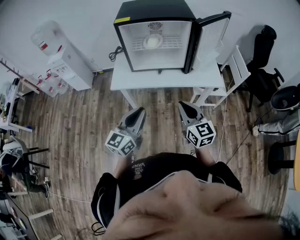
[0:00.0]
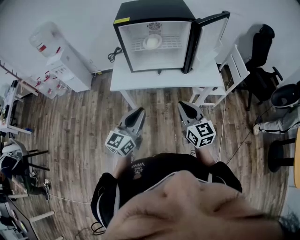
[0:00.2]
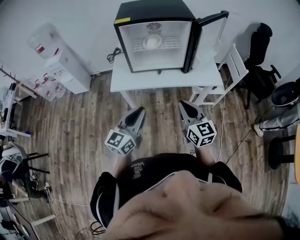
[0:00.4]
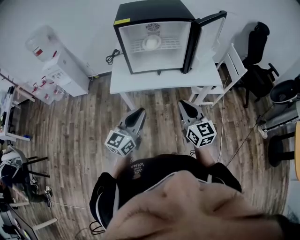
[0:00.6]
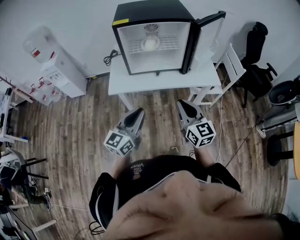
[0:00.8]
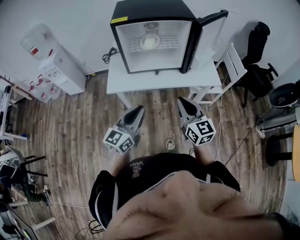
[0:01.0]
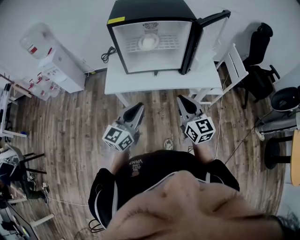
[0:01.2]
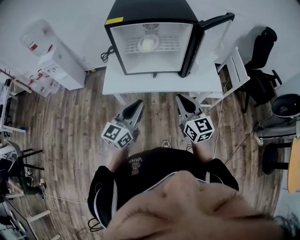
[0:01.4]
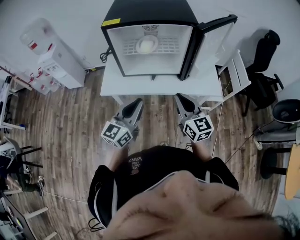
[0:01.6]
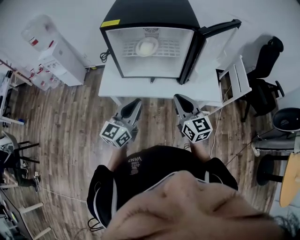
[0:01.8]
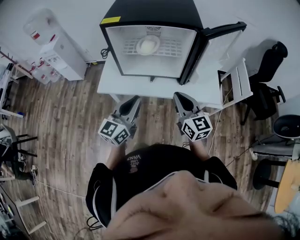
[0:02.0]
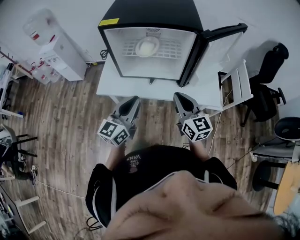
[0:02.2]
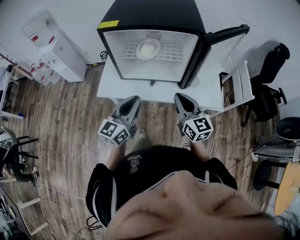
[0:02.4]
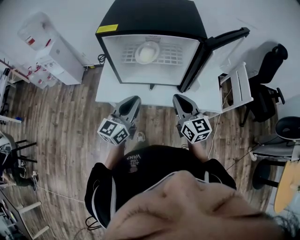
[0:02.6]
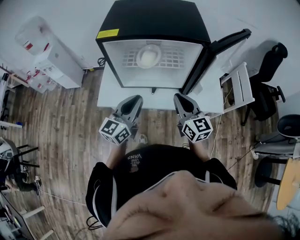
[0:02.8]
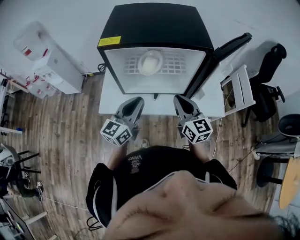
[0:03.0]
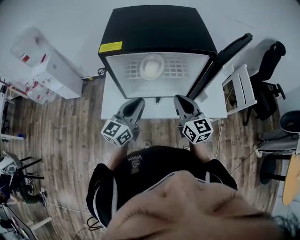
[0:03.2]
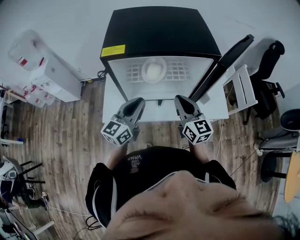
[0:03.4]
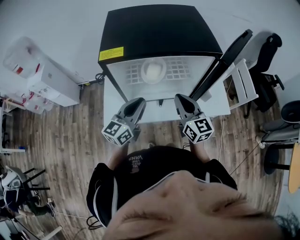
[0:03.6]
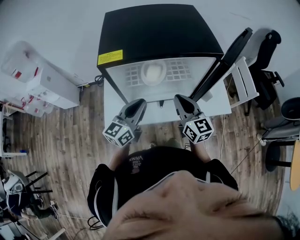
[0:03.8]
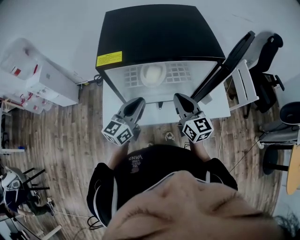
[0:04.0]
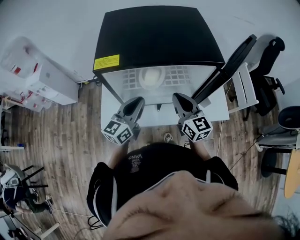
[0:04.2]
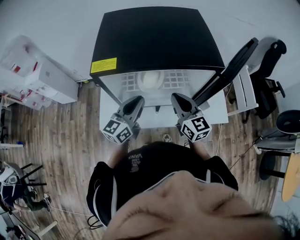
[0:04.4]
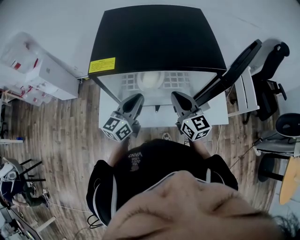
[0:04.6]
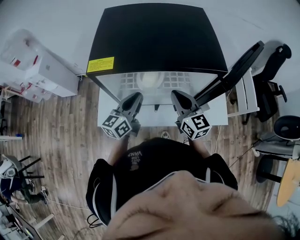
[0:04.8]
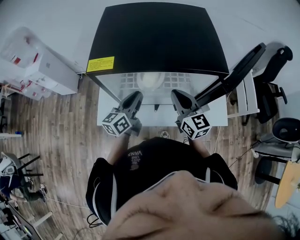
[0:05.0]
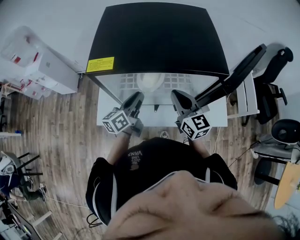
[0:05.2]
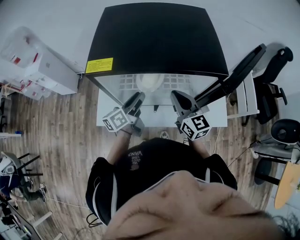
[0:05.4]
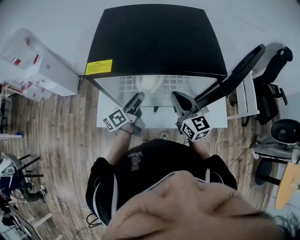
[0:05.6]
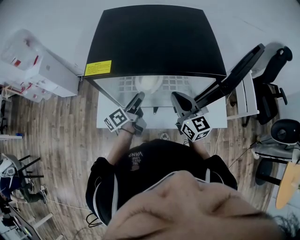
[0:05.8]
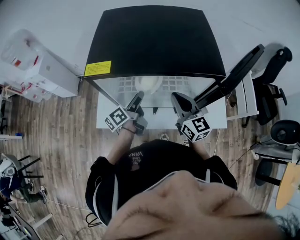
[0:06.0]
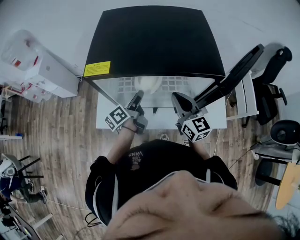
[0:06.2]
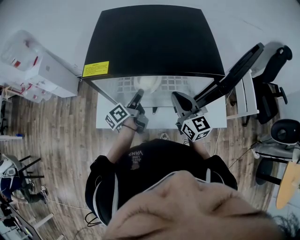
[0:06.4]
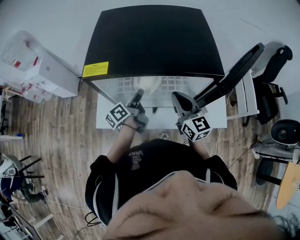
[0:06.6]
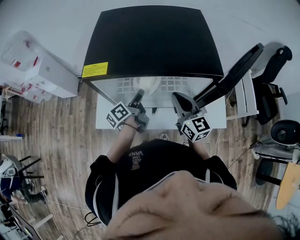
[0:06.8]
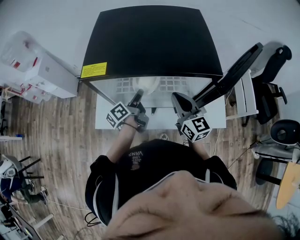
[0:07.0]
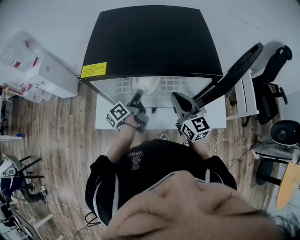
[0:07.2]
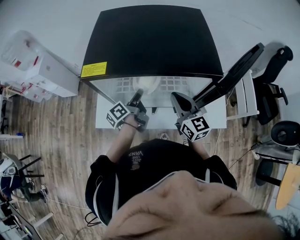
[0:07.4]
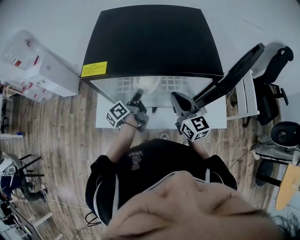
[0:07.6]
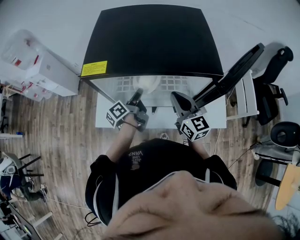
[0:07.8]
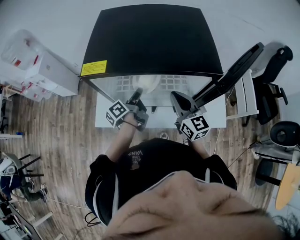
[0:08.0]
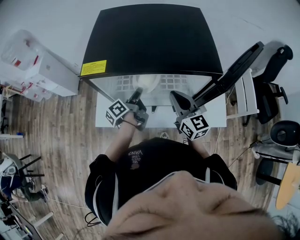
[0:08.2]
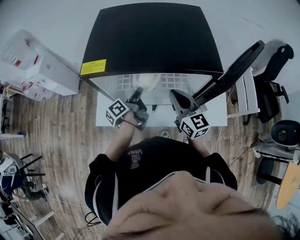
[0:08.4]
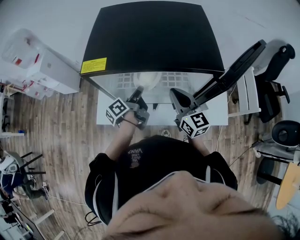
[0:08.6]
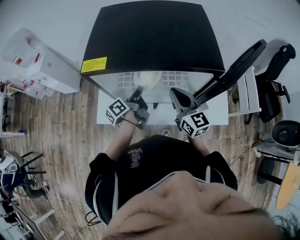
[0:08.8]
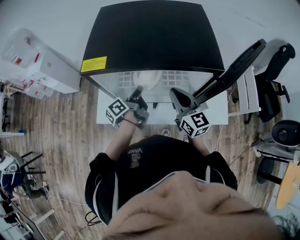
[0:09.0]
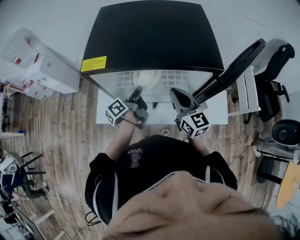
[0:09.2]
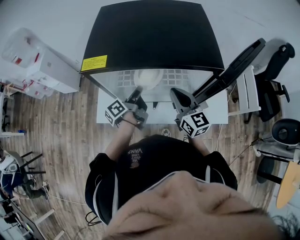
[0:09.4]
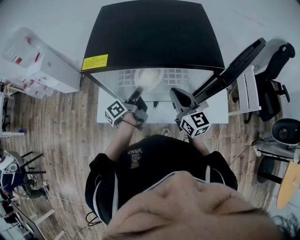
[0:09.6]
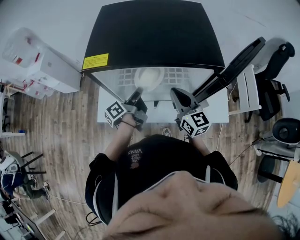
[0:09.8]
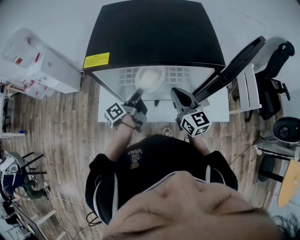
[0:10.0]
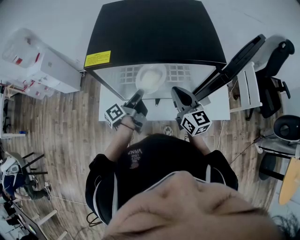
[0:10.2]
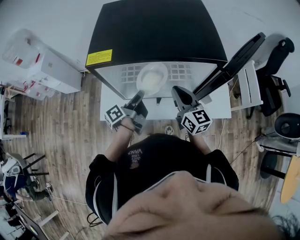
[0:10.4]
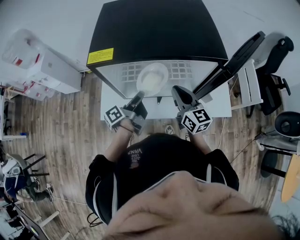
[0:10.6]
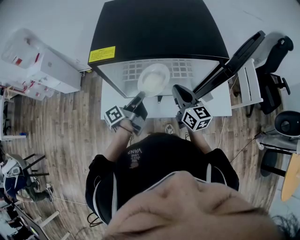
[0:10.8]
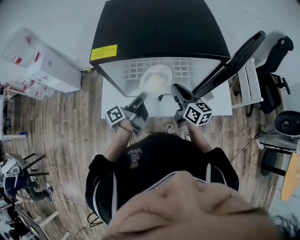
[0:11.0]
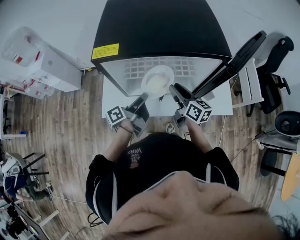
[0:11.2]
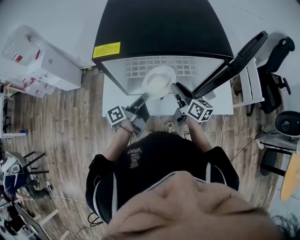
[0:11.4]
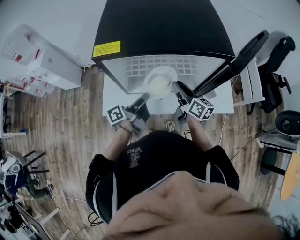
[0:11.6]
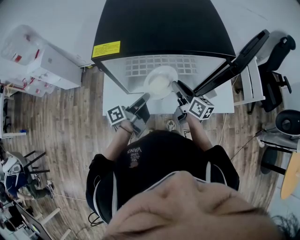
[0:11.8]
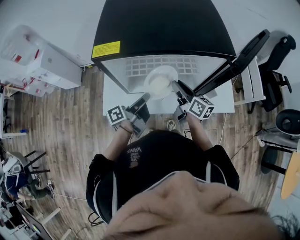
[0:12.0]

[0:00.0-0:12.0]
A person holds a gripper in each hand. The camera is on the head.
0:00.0 to 0:01.6: The grippers both shift forward by some 10 cm.
0:01.6 to 0:03.0: Both grippers travel together forward, approximately 15 cm.
0:03.0 to 0:04.4: Both grippers move forward, approximately 10 cm.
0:04.4 to 0:06.0: The left gripper travels downward and forward by some 10 cm, twists roughly 50 degrees counterclockwise, seen from behind, and opens up.
0:06.0 to 0:07.6: There are only small adjustments of the grippers.
0:07.6 to 0:09.0: The two grippers keep their place.
0:09.0 to 0:10.4: The grippers move only a little.
0:10.4 to 0:12.0: The right gripper is displaced downward by some 5 cm, changes its angle by some 30 degrees, and opens its fingers.

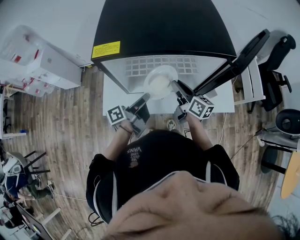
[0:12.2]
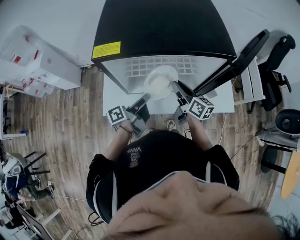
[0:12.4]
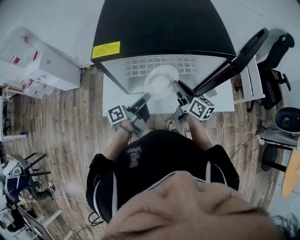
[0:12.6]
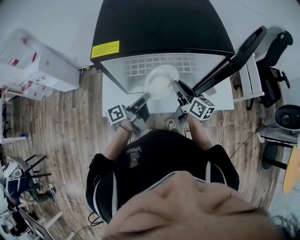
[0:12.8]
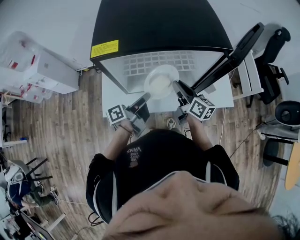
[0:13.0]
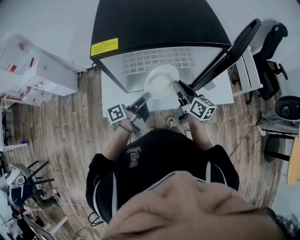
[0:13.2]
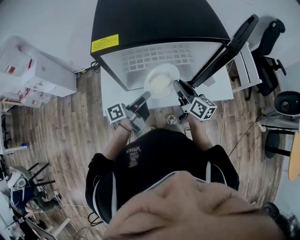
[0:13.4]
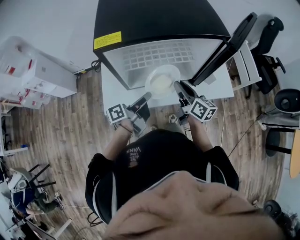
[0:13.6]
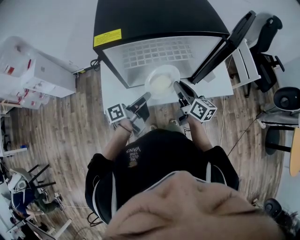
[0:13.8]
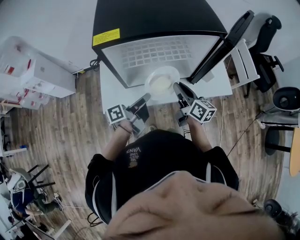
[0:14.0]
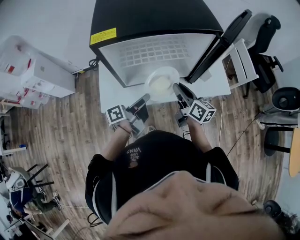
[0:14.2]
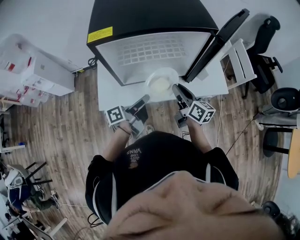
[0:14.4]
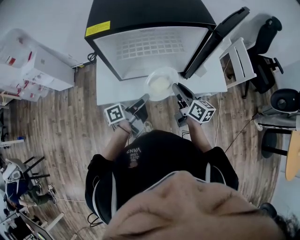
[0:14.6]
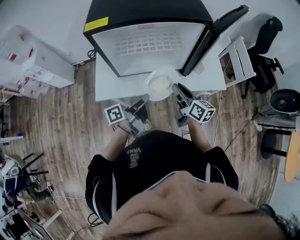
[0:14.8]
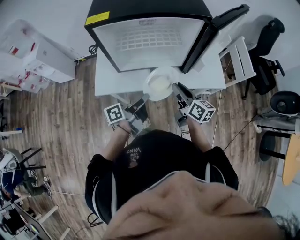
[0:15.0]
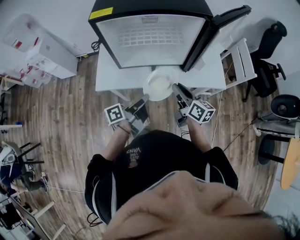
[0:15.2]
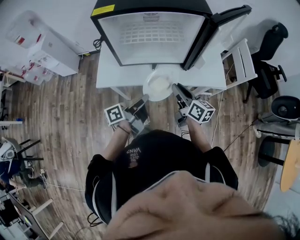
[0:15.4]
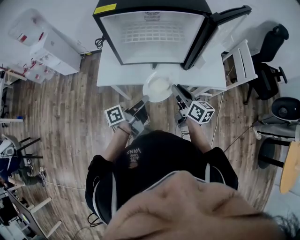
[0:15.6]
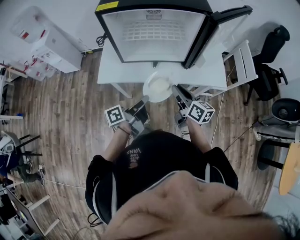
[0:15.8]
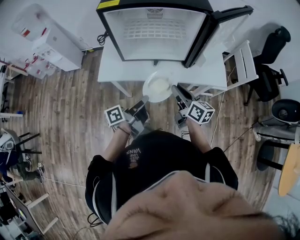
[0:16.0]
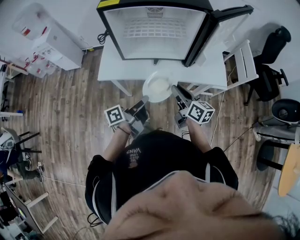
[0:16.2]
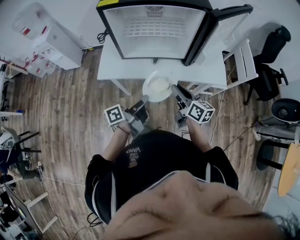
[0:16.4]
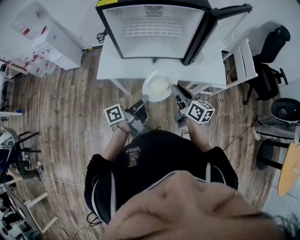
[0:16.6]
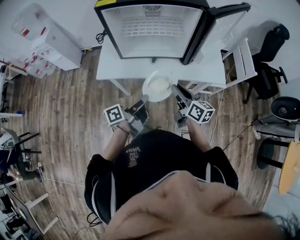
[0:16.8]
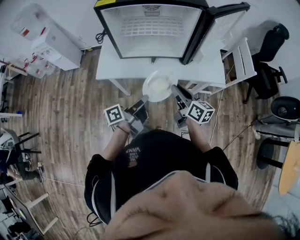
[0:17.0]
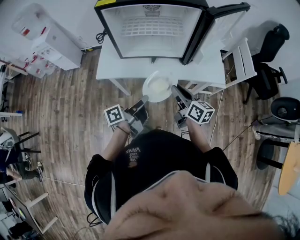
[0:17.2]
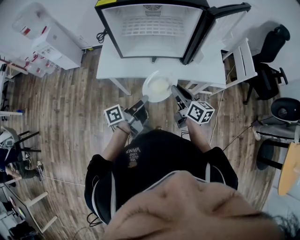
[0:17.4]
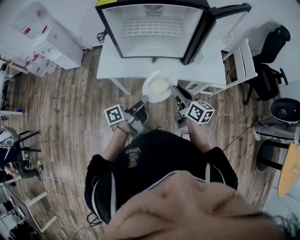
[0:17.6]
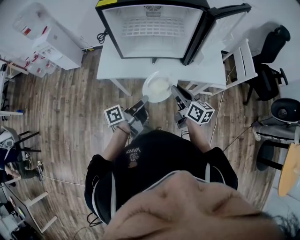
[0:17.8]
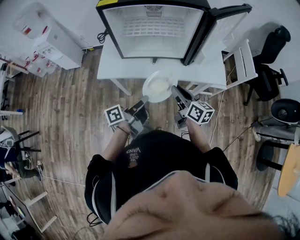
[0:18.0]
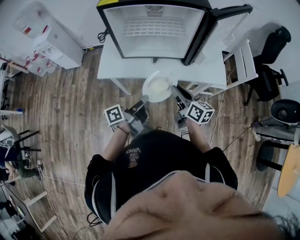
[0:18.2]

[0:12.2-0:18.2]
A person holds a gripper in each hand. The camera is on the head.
0:12.2 to 0:13.8: The right gripper shifts approximately 5 cm backward.
0:13.8 to 0:15.2: The grippers both shift backward and to the right by roughly 10 cm.
0:15.2 to 0:16.6: Both grippers travel together backward, approximately 5 cm.
0:16.6 to 0:18.2: Both grippers stay about where they are.

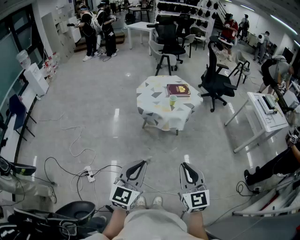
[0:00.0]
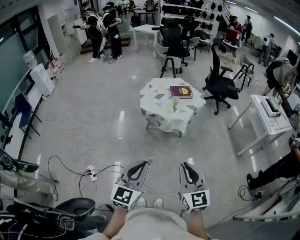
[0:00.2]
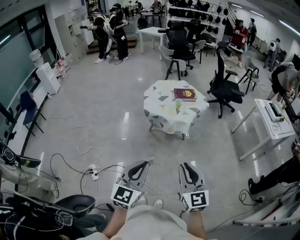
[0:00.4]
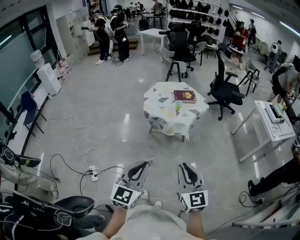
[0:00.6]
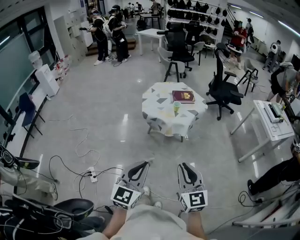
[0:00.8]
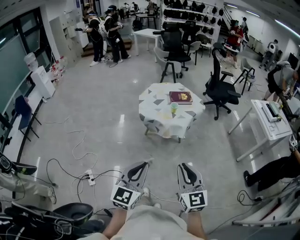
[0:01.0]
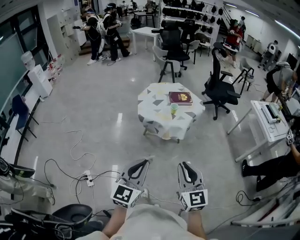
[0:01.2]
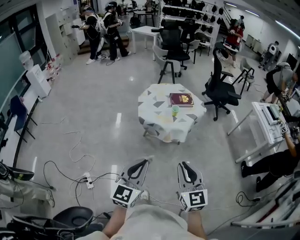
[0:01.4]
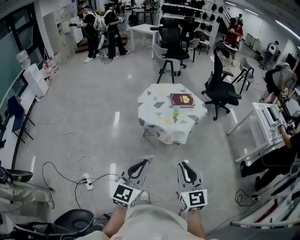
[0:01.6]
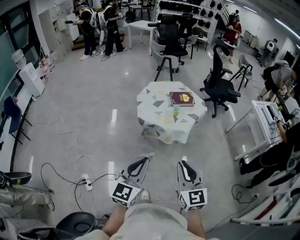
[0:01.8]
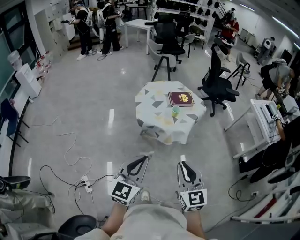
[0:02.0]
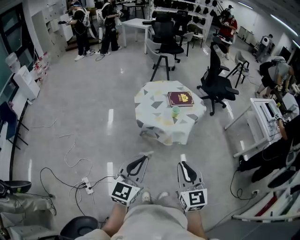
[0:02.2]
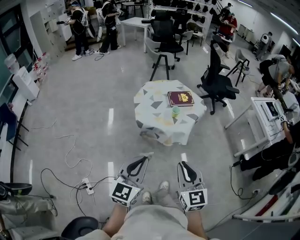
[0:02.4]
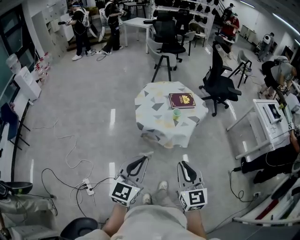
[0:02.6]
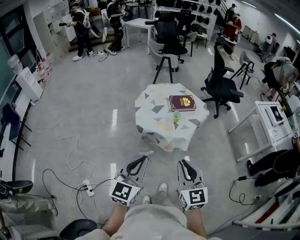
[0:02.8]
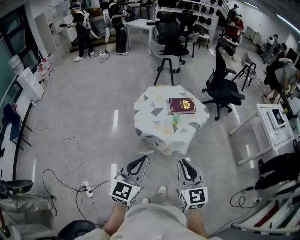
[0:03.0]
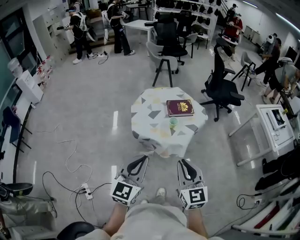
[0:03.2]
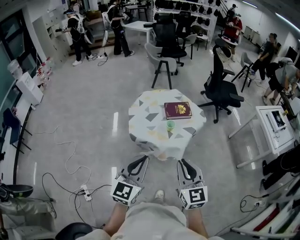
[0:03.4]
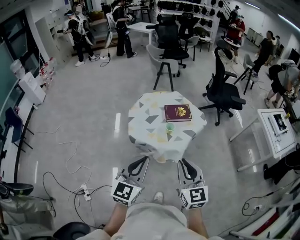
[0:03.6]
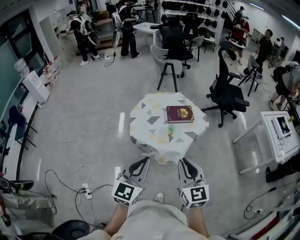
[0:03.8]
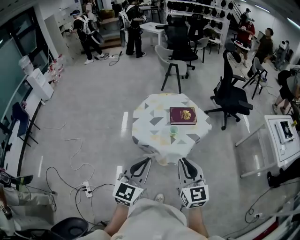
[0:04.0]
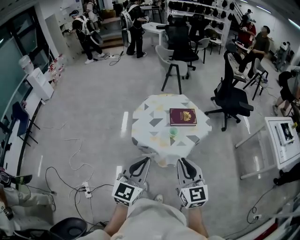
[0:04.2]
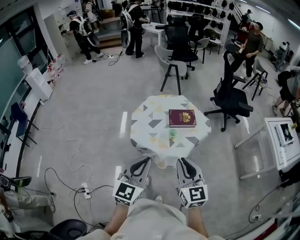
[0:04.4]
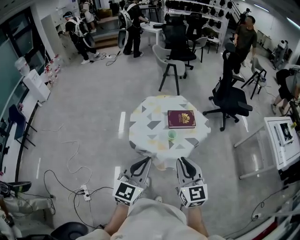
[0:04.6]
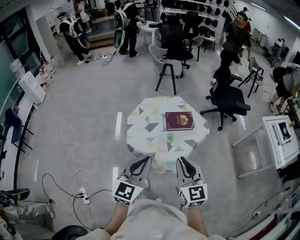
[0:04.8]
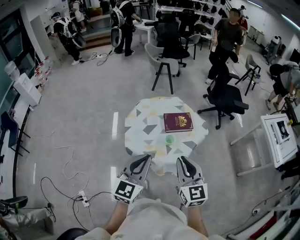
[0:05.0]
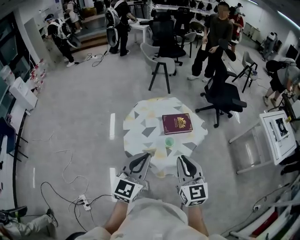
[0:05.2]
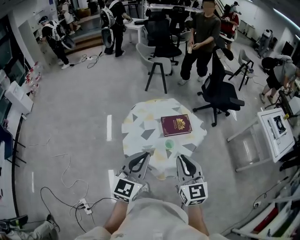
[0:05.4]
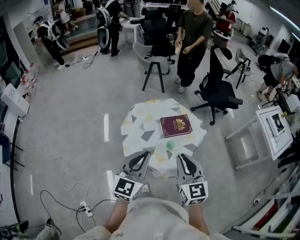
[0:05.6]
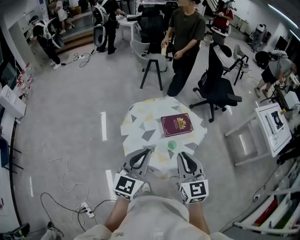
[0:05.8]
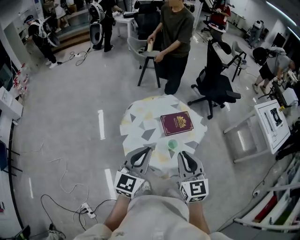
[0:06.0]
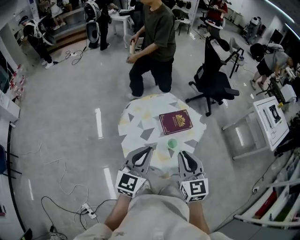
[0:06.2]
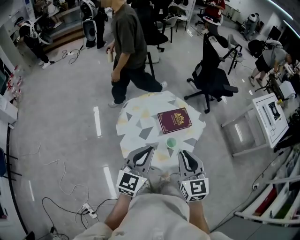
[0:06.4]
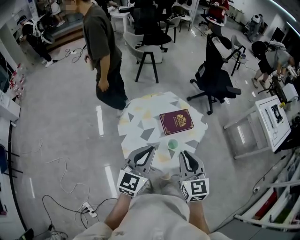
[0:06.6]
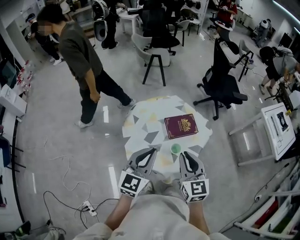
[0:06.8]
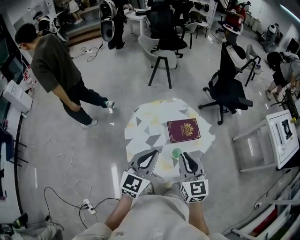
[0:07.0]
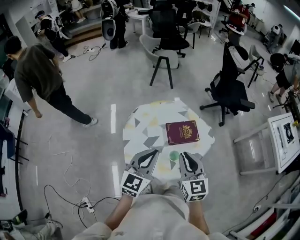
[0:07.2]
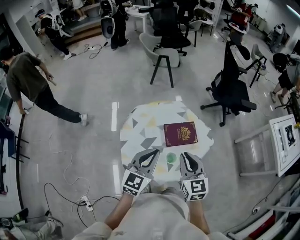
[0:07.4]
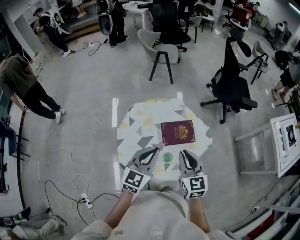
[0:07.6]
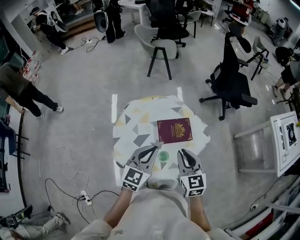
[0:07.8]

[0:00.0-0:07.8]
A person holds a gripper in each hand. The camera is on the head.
0:00.0 to 0:01.6: Both grippers travel together forward, approximately 10 cm.
0:01.6 to 0:03.2: The two grippers go about 15 cm forward.
0:03.2 to 0:04.6: The left gripper moves forward and to the right, about 10 cm. Meanwhile the right gripper heads forward, covering approximately 10 cm.
0:04.6 to 0:06.2: The two grippers go about 20 cm forward and to the left.
0:06.2 to 0:07.8: The left gripper moves forward, to the right and downward, about 20 cm, while the right gripper moves forward, downward and to the right, some 20 cm.
